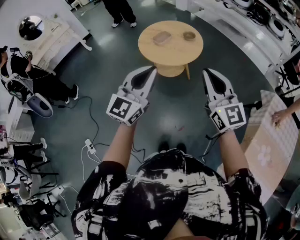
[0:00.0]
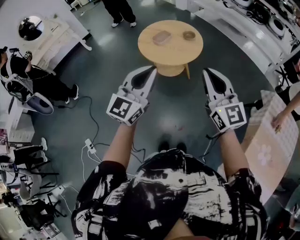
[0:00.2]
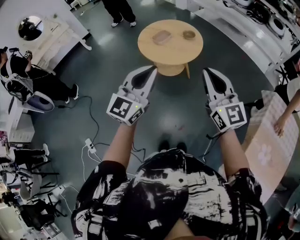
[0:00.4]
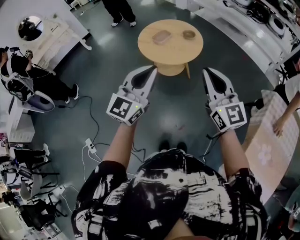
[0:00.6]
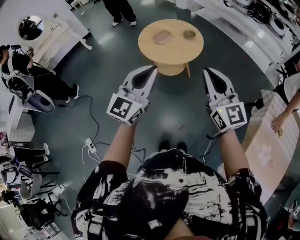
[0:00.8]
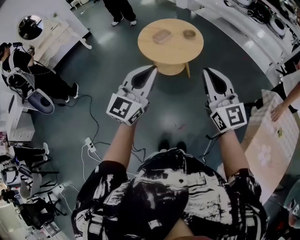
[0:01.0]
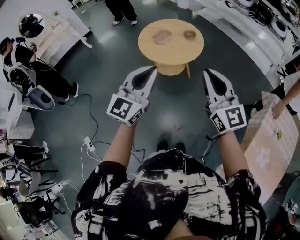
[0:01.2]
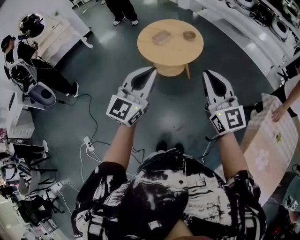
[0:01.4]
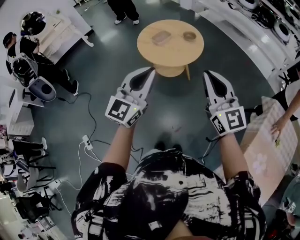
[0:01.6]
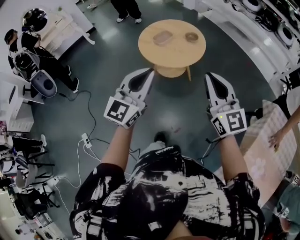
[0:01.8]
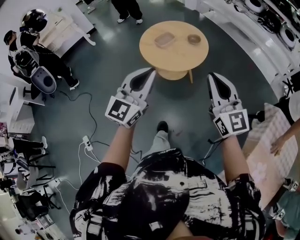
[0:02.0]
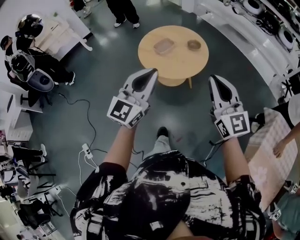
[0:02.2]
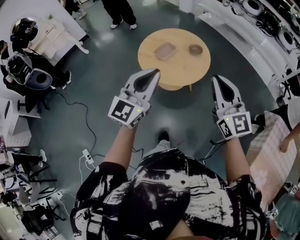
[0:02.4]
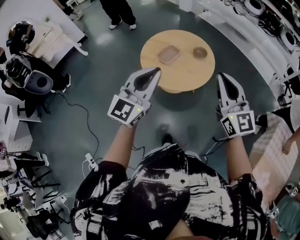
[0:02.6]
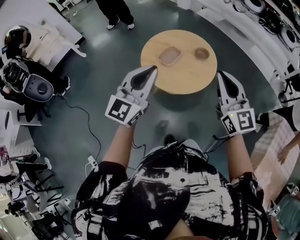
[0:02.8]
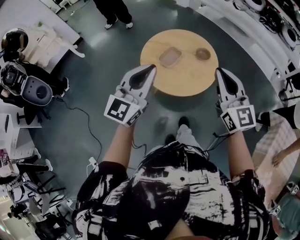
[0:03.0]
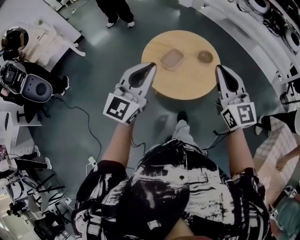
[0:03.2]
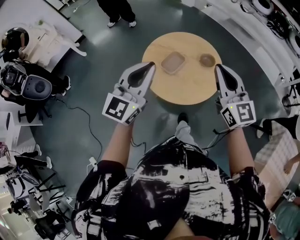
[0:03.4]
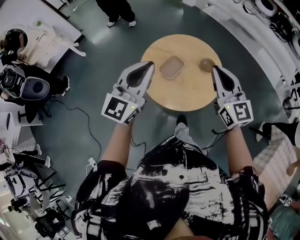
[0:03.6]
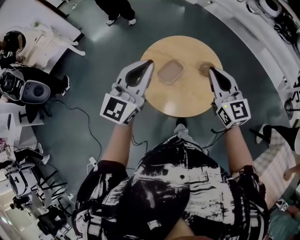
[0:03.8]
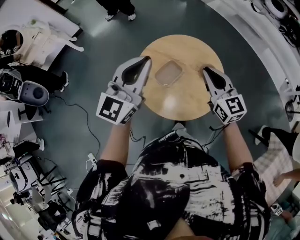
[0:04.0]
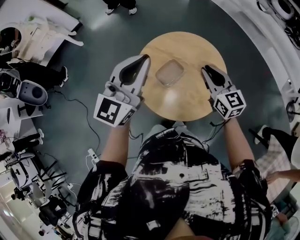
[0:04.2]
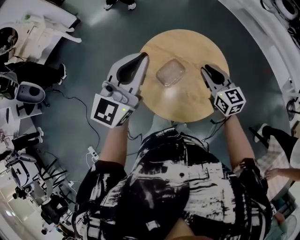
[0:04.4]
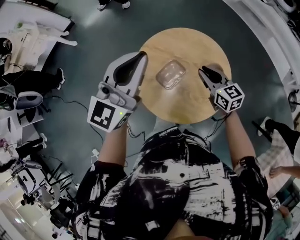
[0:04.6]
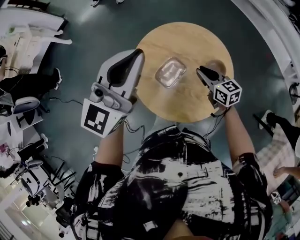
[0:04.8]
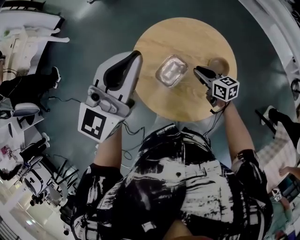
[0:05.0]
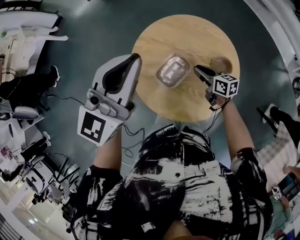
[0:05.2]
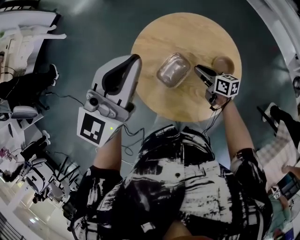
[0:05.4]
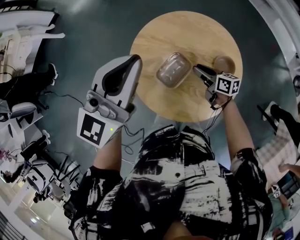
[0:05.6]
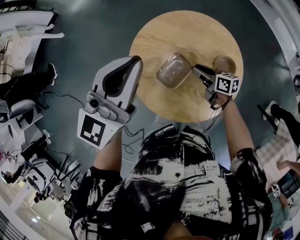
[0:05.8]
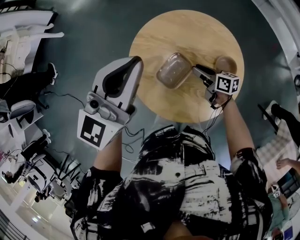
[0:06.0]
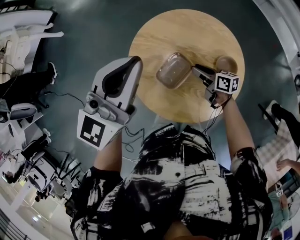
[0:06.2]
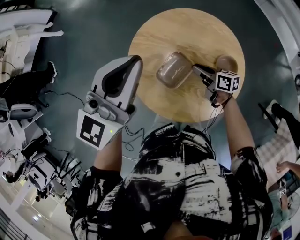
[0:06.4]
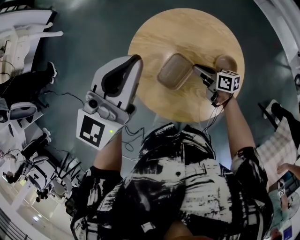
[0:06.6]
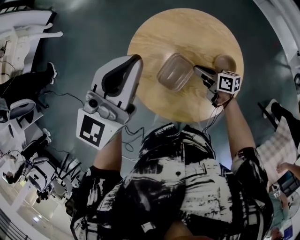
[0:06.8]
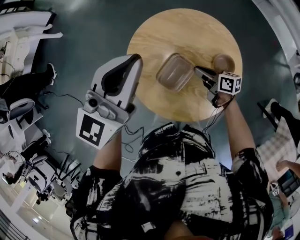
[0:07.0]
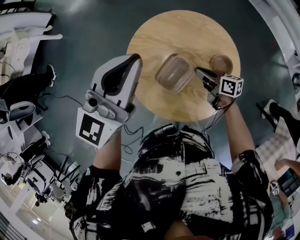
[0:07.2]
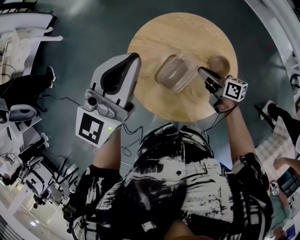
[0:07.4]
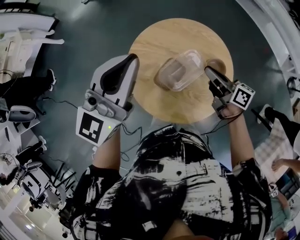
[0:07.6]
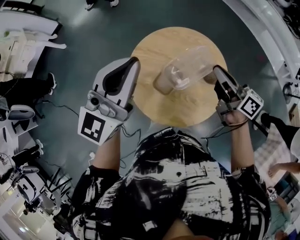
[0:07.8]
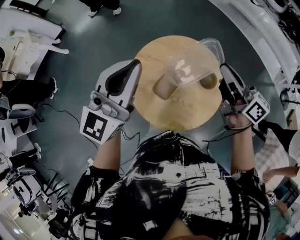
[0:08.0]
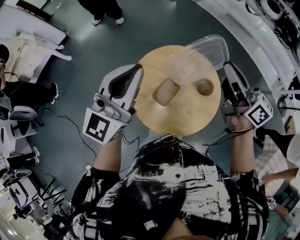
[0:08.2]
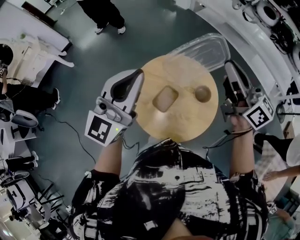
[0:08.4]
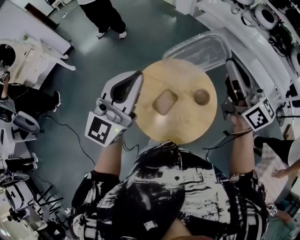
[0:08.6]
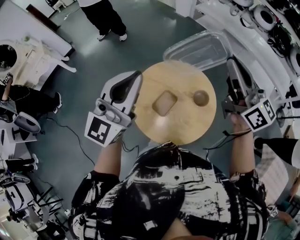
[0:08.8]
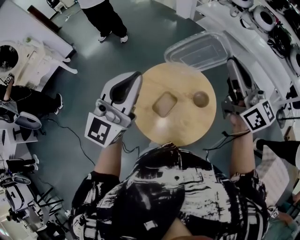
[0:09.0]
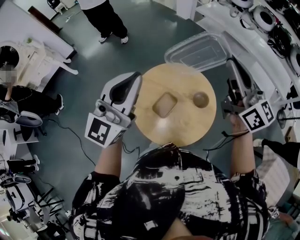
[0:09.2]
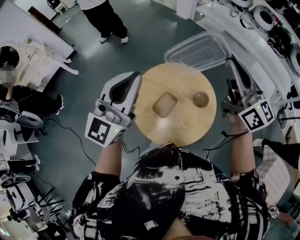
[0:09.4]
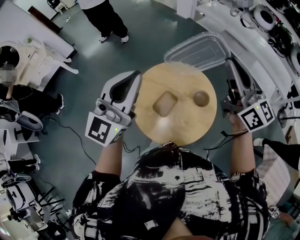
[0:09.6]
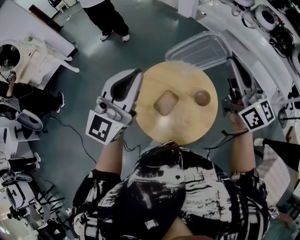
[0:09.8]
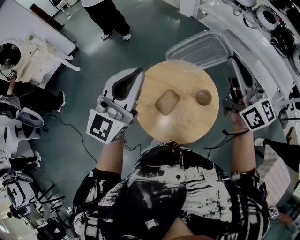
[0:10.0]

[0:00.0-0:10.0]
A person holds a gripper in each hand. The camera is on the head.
0:00.0 to 0:01.4: The grippers move only a little.
0:01.4 to 0:02.8: Both grippers move forward, roughly 30 cm.
0:02.8 to 0:04.2: The right gripper goes about 40 cm forward and downward, and changes its angle by roughly 30 degrees. Meanwhile the left gripper is displaced forward by some 30 cm.
0:04.2 to 0:05.8: The left gripper heads forward and downward, covering roughly 20 cm; the right gripper heads downward, covering approximately 30 cm, and rotates around the line of its fingers by roughly 50 degrees, clockwise from behind.
0:05.8 to 0:07.2: The right gripper moves some 5 cm, and closes its fingers.
0:07.2 to 0:08.6: The left gripper moves upward and backward, roughly 20 cm. Meanwhile the right gripper heads upward, covering approximately 50 cm, and tips its fingers upward by roughly 30 degrees.
0:08.6 to 0:10.0: The grippers make only small movements.

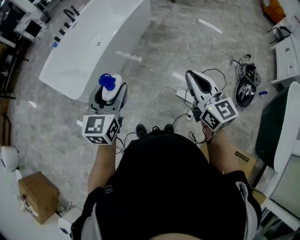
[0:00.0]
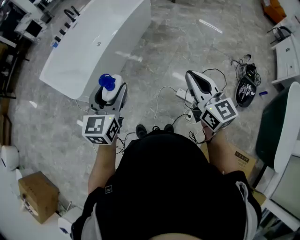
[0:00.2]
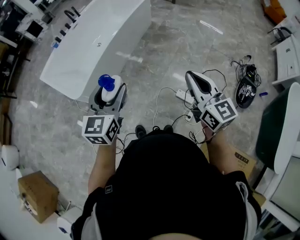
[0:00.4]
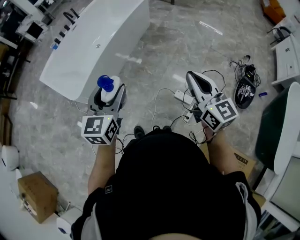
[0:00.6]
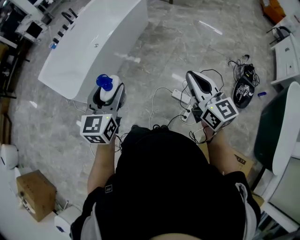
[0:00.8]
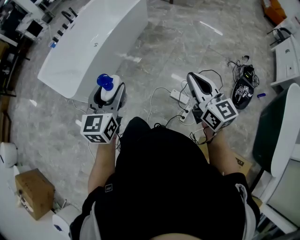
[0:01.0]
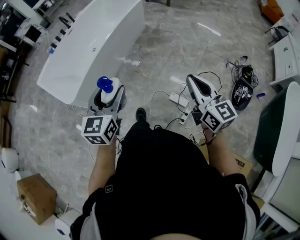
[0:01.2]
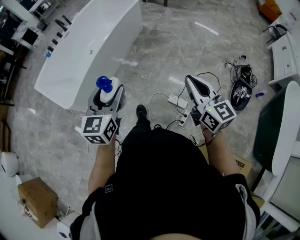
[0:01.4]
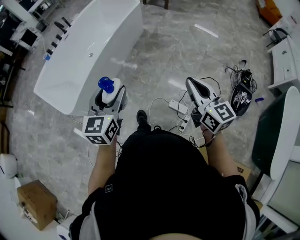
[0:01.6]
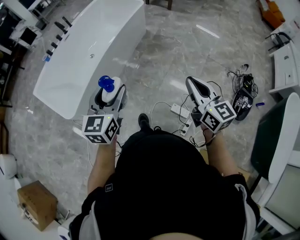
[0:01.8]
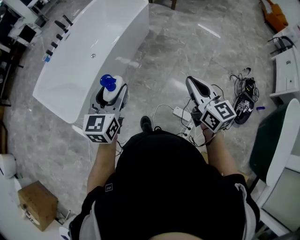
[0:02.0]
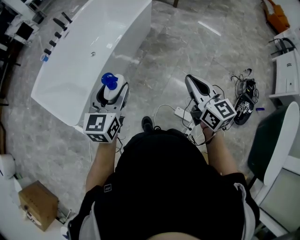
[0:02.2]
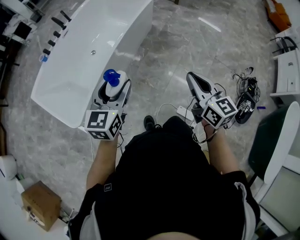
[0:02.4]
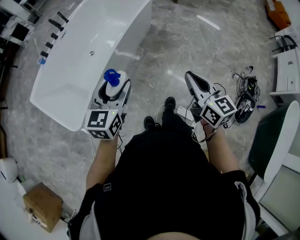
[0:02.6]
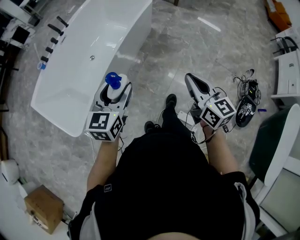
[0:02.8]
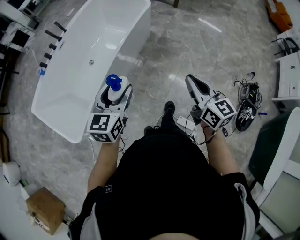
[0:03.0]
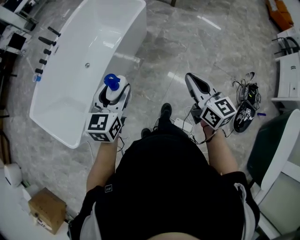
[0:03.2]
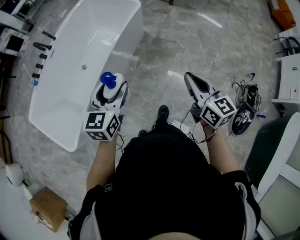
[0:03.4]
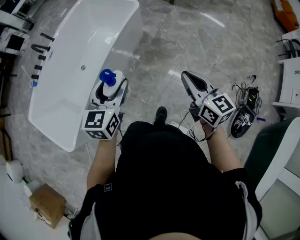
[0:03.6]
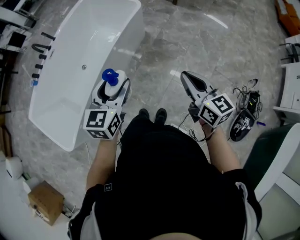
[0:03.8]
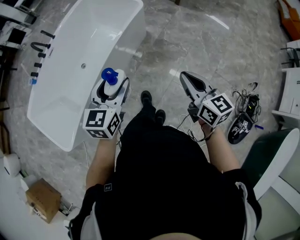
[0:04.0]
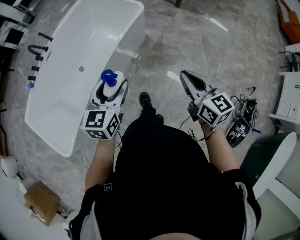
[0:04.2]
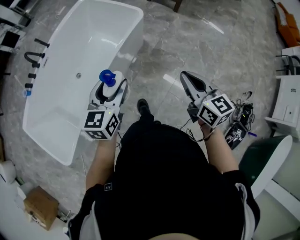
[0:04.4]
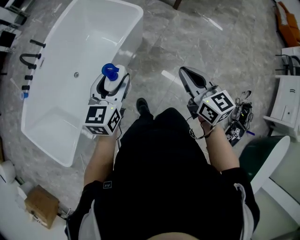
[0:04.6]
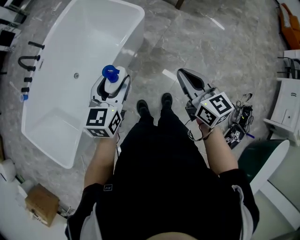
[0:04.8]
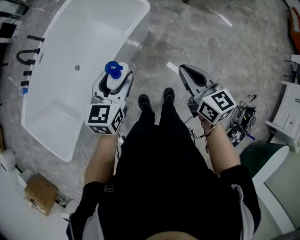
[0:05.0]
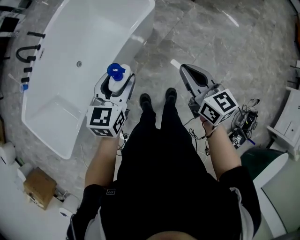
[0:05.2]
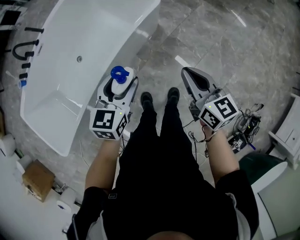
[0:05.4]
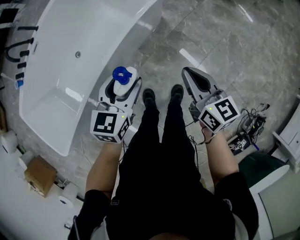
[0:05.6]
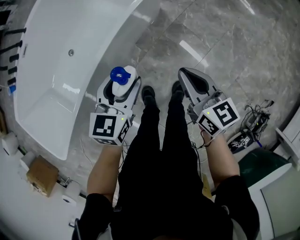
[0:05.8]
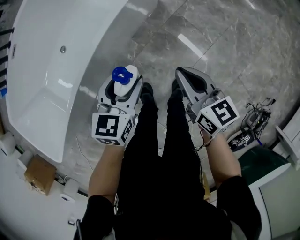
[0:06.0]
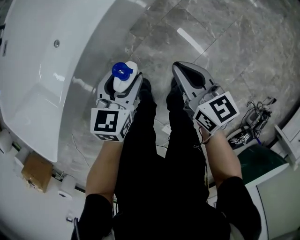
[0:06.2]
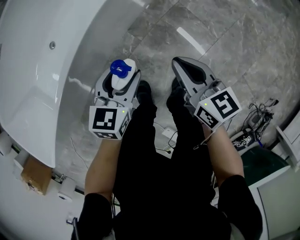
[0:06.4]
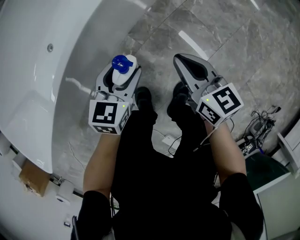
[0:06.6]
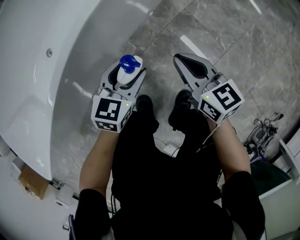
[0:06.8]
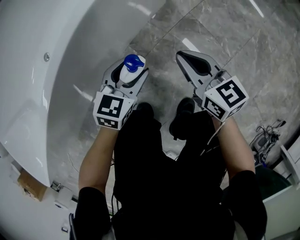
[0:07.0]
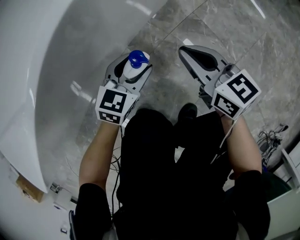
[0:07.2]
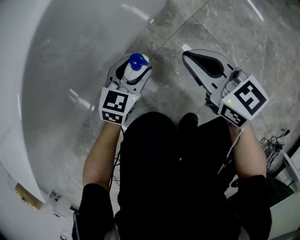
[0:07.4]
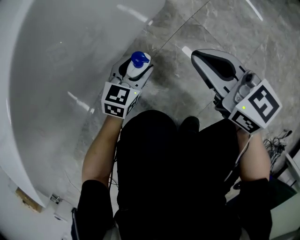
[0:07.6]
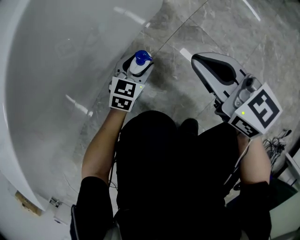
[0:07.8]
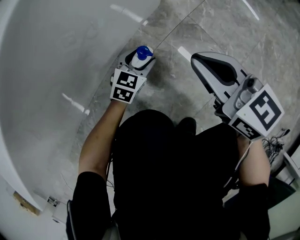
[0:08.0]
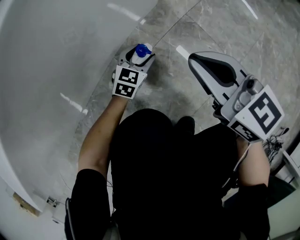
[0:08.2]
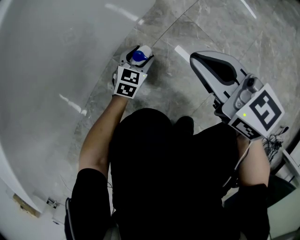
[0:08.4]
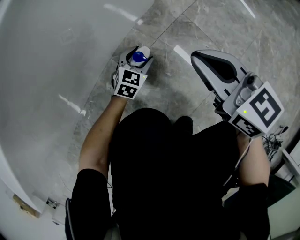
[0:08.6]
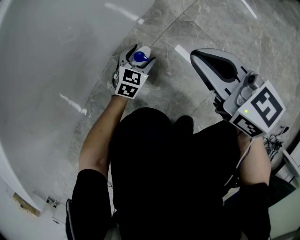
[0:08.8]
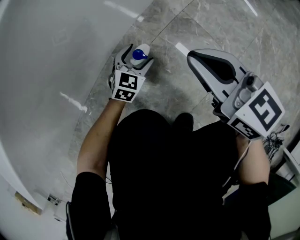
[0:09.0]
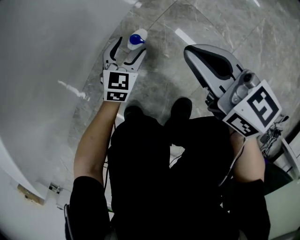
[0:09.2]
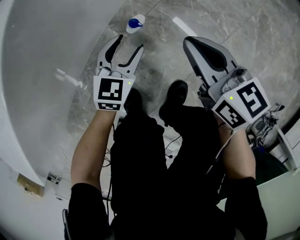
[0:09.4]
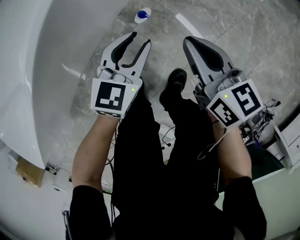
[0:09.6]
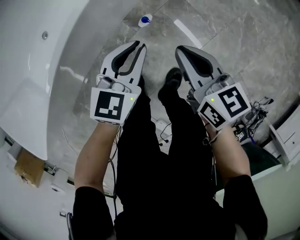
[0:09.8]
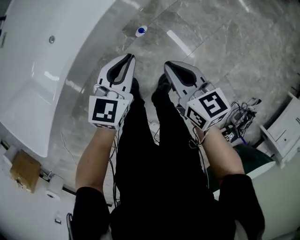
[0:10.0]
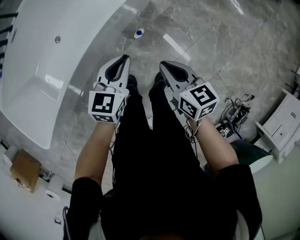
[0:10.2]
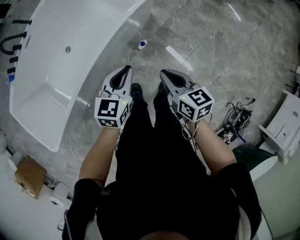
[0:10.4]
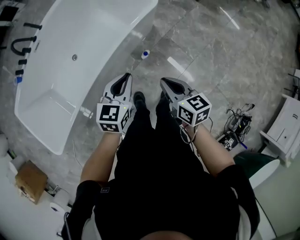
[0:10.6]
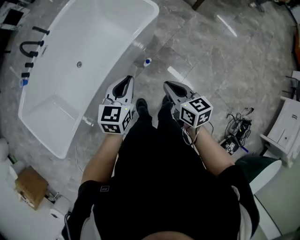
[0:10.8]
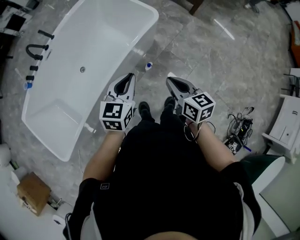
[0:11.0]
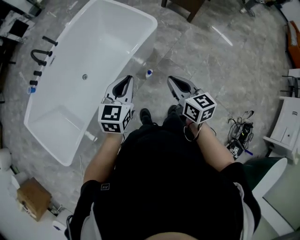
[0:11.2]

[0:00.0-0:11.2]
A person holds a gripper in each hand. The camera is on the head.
0:00.0 to 0:01.6: Both grippers move to the right and forward, roughly 10 cm.
0:01.6 to 0:03.2: The two grippers travel together, forward, some 40 cm.
0:03.2 to 0:04.8: The two grippers go roughly 35 cm forward.
0:04.8 to 0:06.4: Both grippers travel together downward, approximately 40 cm.
0:06.4 to 0:08.0: The right gripper moves downward and forward, approximately 25 cm. Meanwhile the left gripper heads downward, covering approximately 40 cm.
0:08.0 to 0:09.6: The right gripper heads upward and backward, covering some 15 cm. Meanwhile the left gripper shifts some 30 cm upward.
0:09.6 to 0:11.2: Both grippers travel together upward, approximately 50 cm.

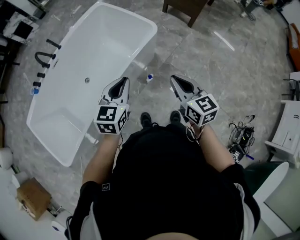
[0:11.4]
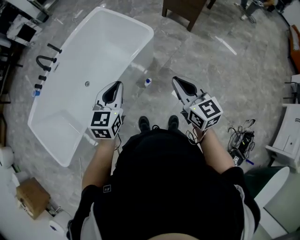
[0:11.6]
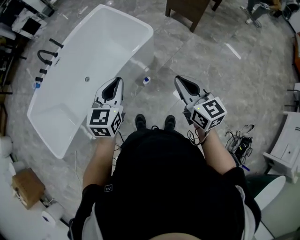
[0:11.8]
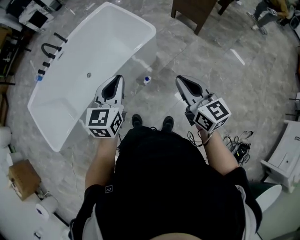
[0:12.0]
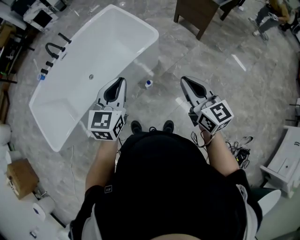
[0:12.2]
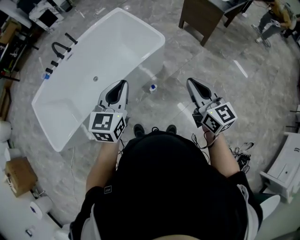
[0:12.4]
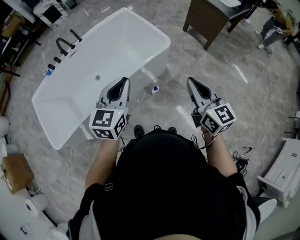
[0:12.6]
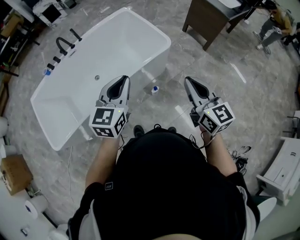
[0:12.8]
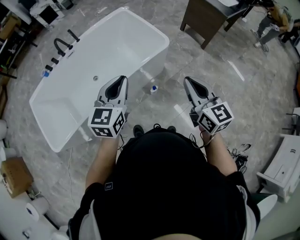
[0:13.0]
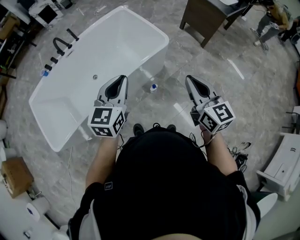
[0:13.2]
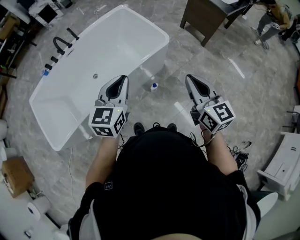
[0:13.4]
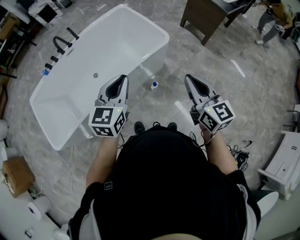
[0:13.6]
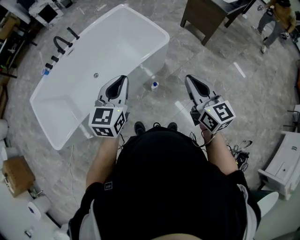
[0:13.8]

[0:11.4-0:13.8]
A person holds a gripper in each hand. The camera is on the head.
0:11.4 to 0:12.6: The left gripper moves upward, approximately 10 cm, and moves about 10 cm to the right and comes back. Meanwhile the right gripper heads upward and to the right, covering some 10 cm.
0:12.6 to 0:13.8: The grippers stay close to where they were, moving slightly.
